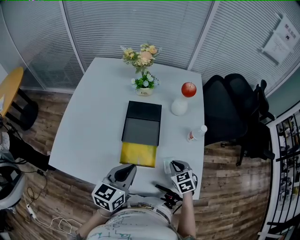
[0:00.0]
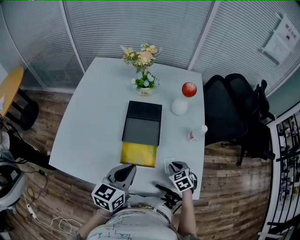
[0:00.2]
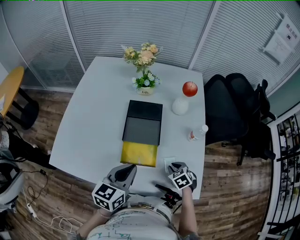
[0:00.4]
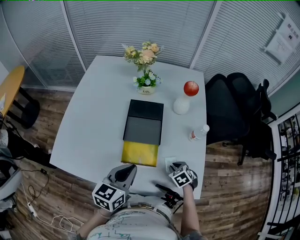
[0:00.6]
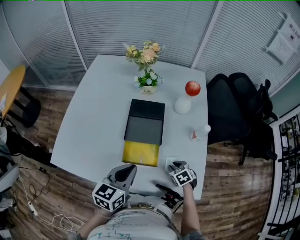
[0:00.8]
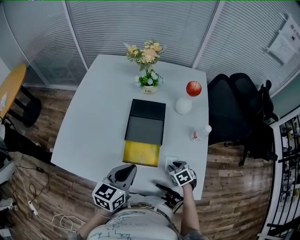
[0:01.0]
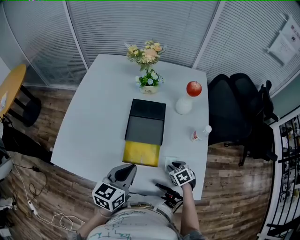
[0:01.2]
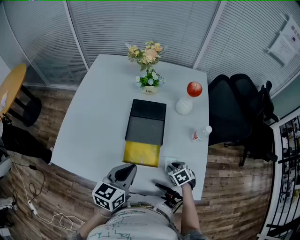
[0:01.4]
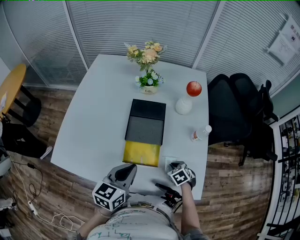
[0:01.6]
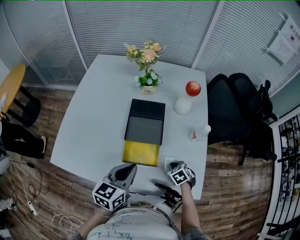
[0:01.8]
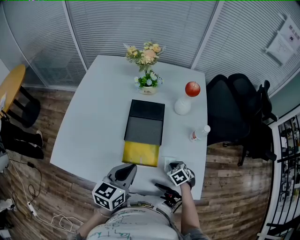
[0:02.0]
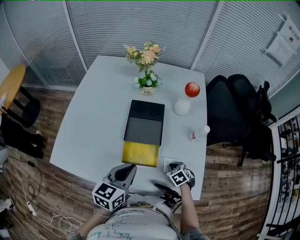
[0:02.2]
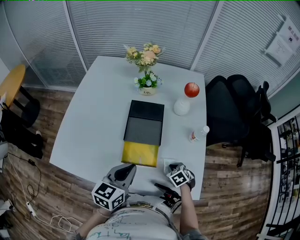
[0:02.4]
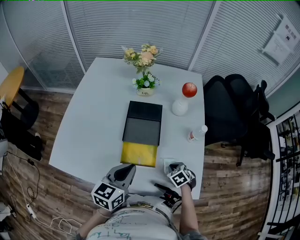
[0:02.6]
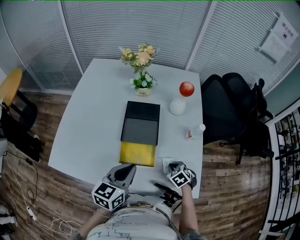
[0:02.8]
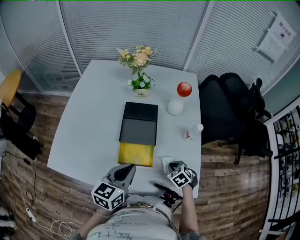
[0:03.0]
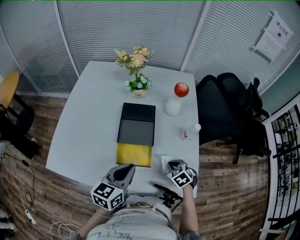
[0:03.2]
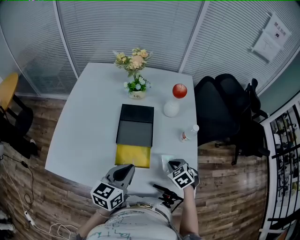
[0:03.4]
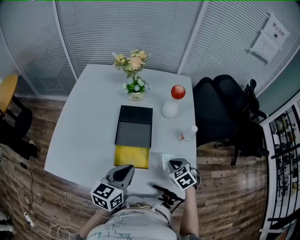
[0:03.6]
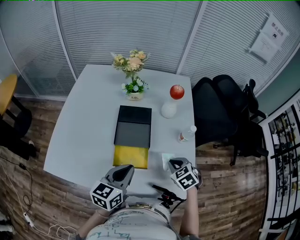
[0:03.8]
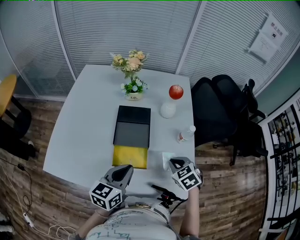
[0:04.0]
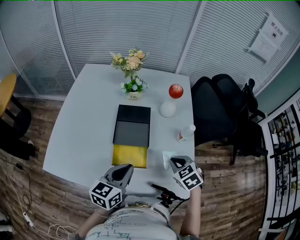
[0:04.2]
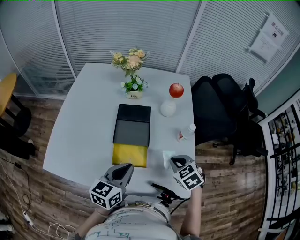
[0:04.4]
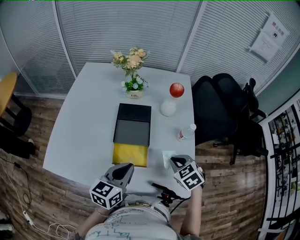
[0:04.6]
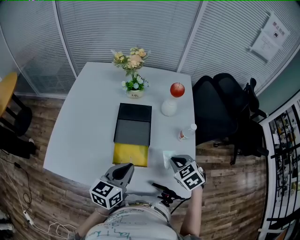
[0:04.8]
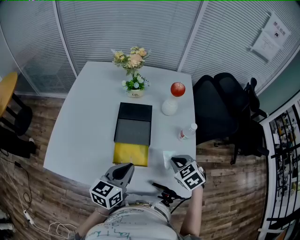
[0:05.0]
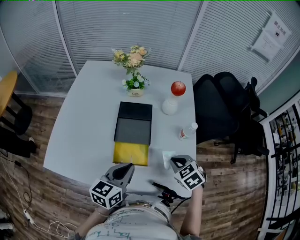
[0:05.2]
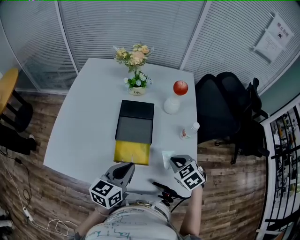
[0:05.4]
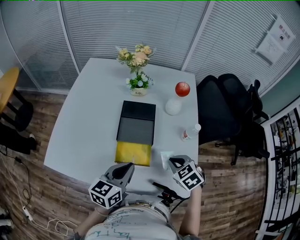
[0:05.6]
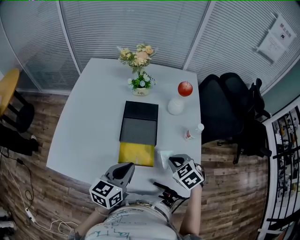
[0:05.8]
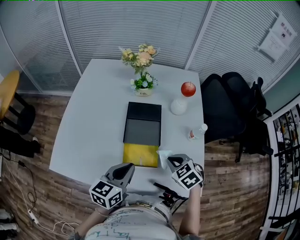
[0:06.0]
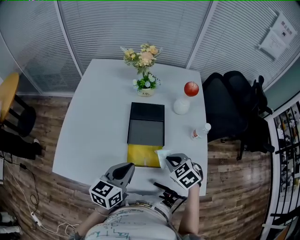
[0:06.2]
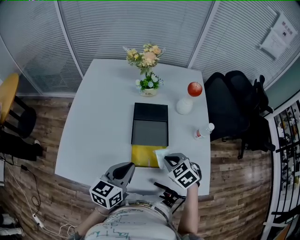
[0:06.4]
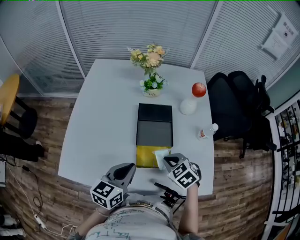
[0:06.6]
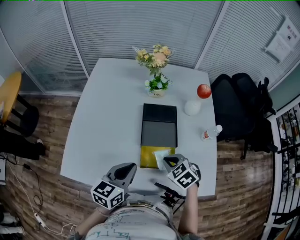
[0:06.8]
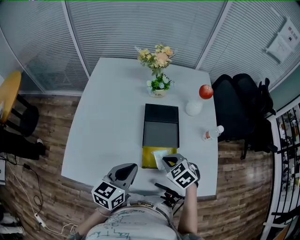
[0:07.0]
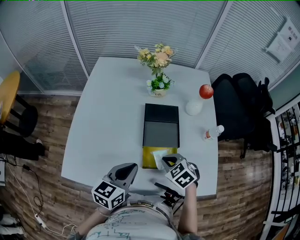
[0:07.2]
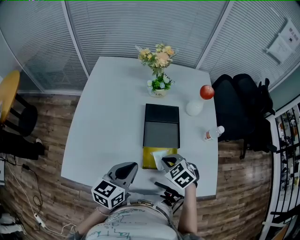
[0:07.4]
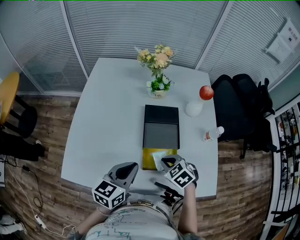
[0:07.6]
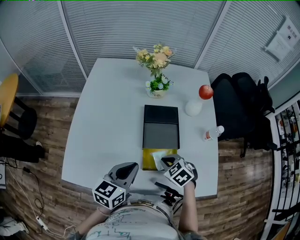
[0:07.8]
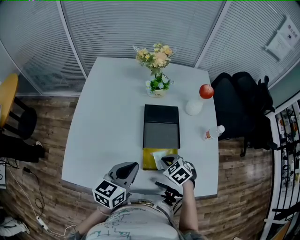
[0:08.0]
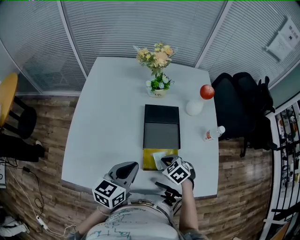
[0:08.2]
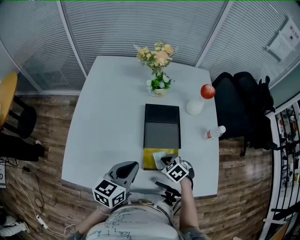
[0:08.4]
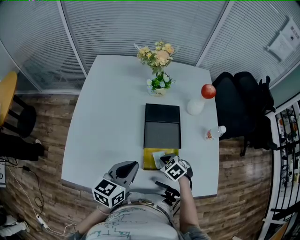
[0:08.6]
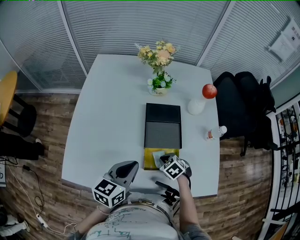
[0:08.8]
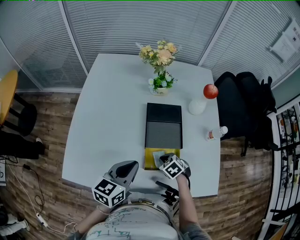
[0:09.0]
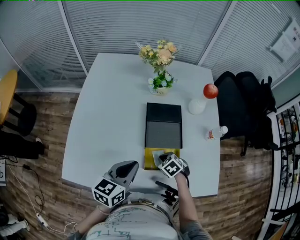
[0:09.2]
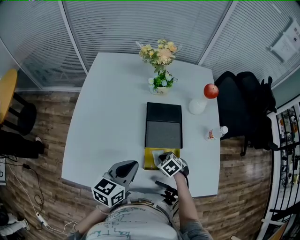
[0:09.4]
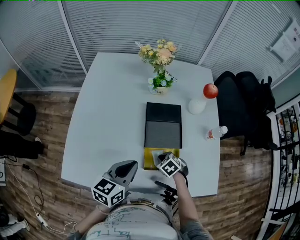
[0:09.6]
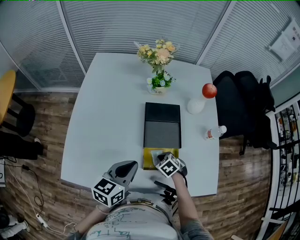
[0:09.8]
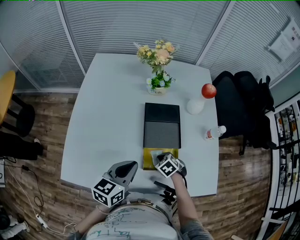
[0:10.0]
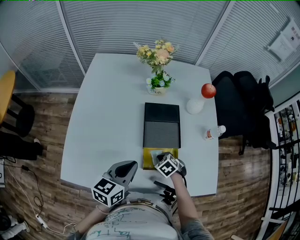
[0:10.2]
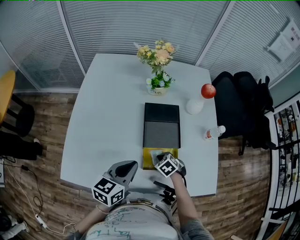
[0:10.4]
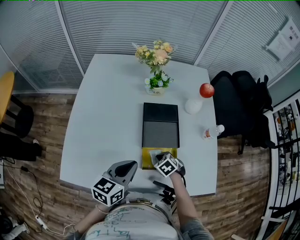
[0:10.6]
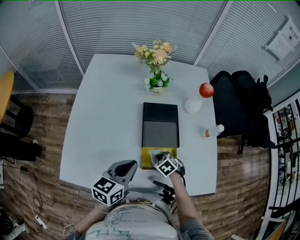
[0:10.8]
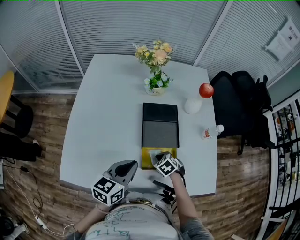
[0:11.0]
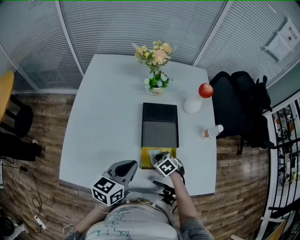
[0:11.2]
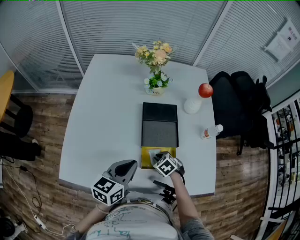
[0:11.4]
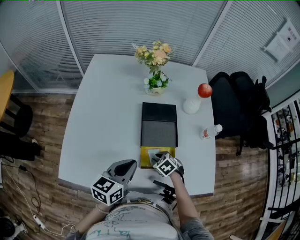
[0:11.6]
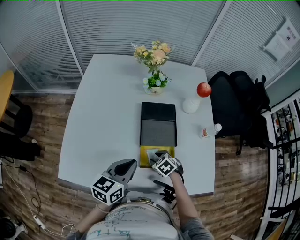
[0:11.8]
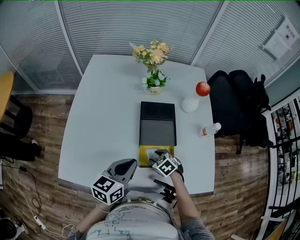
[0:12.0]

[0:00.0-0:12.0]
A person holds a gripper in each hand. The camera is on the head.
0:00.0 to 0:01.6: The right gripper heads downward, covering approximately 10 cm.
0:01.6 to 0:03.0: There are only small adjustments of the grippers.
0:03.0 to 0:04.4: The right gripper shifts roughly 15 cm upward.
0:04.4 to 0:06.0: Both grippers travel together to the left, roughly 5 cm.
0:06.0 to 0:07.6: The grippers both shift to the left by roughly 10 cm.
0:07.6 to 0:09.0: The right gripper heads downward, covering about 10 cm.
0:09.0 to 0:10.4: The grippers make only small movements.
0:10.4 to 0:12.0: The right gripper opens up.

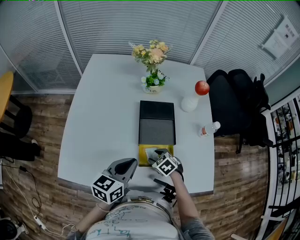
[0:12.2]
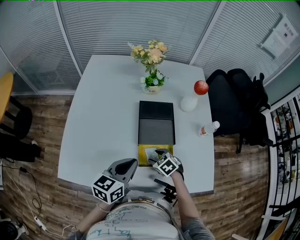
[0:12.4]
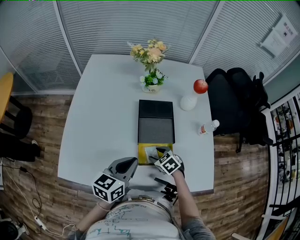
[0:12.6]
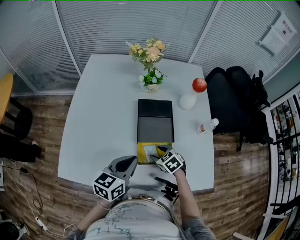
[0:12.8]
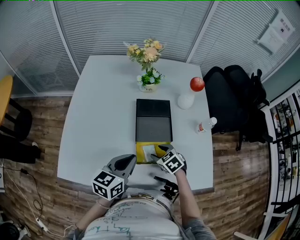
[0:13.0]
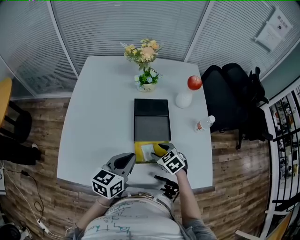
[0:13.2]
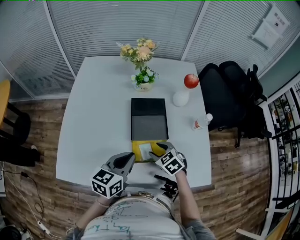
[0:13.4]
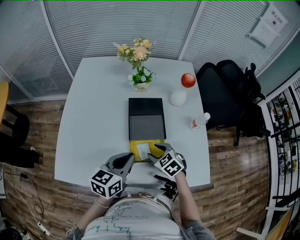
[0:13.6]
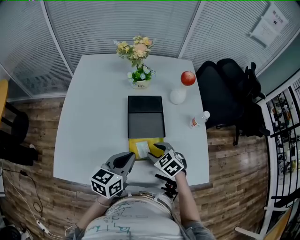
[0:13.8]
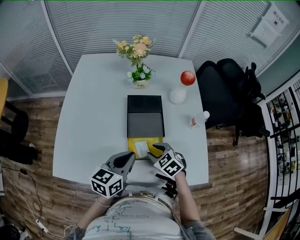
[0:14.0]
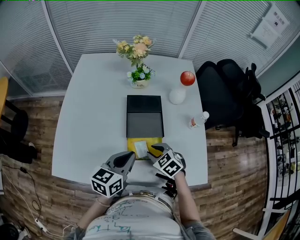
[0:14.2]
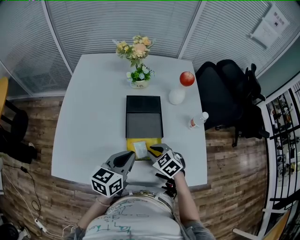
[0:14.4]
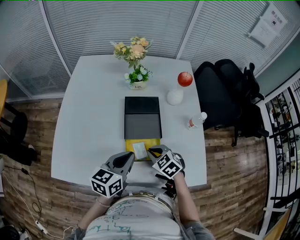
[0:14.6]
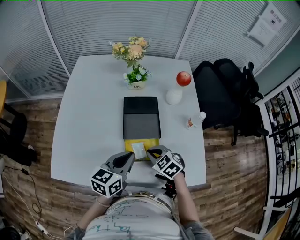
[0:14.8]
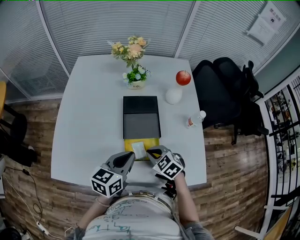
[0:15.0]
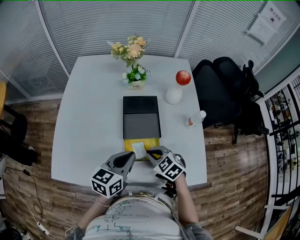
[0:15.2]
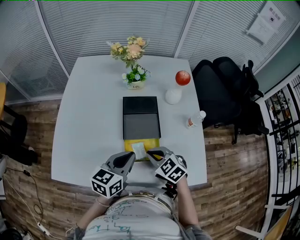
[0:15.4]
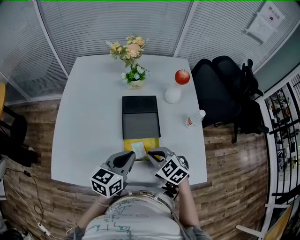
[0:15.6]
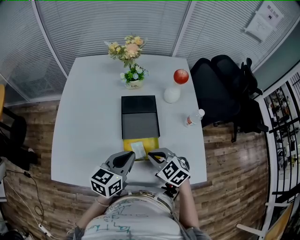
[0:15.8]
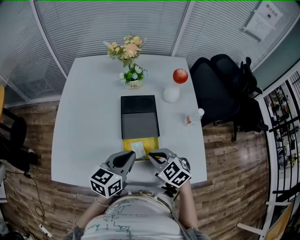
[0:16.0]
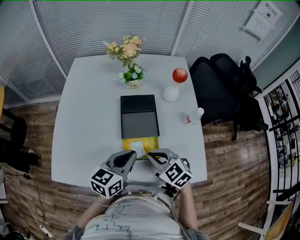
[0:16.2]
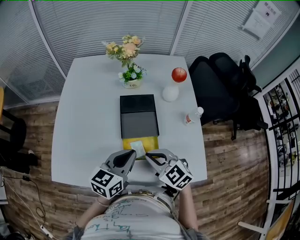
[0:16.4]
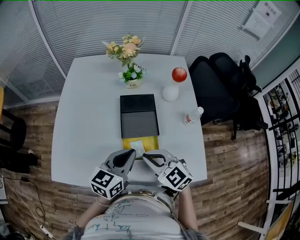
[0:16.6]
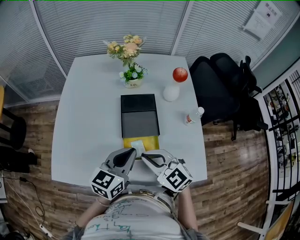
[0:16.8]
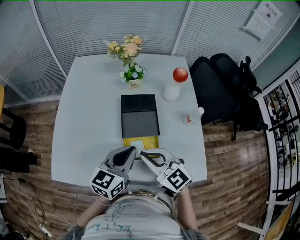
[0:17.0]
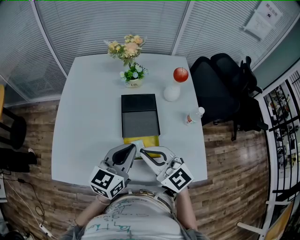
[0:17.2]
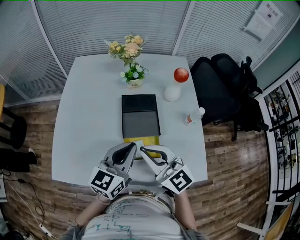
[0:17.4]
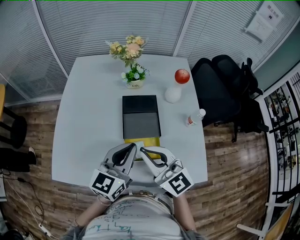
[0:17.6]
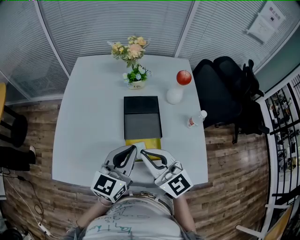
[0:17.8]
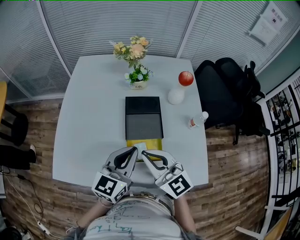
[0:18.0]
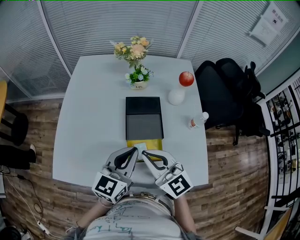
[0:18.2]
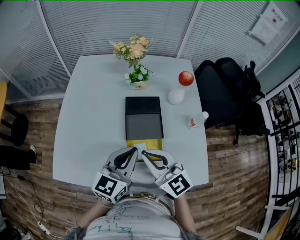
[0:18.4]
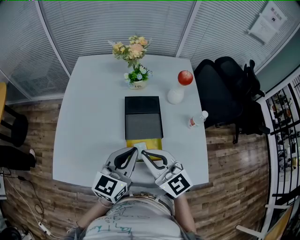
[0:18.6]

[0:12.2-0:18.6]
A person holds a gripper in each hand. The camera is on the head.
0:12.2 to 0:13.8: The right gripper shifts approximately 10 cm upward.
0:13.8 to 0:15.4: The right gripper closes its fingers.
0:15.4 to 0:17.0: The right gripper travels upward by some 10 cm, and changes its angle by some 30 degrees.
0:17.0 to 0:18.6: The grippers stay close to where they were, moving slightly.

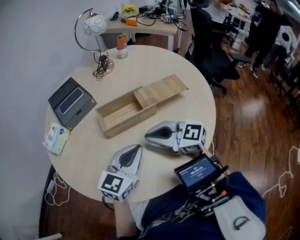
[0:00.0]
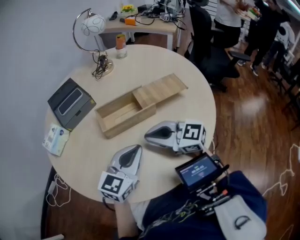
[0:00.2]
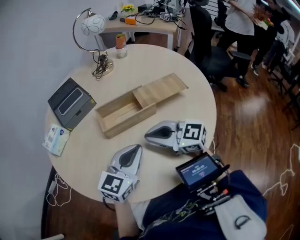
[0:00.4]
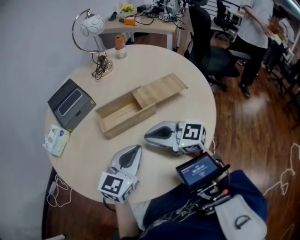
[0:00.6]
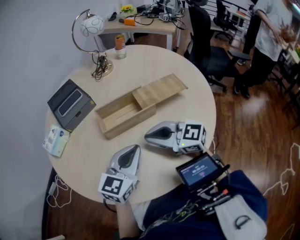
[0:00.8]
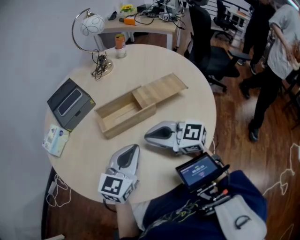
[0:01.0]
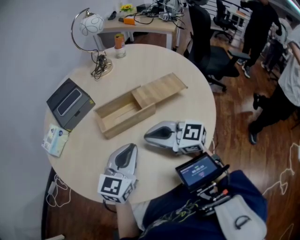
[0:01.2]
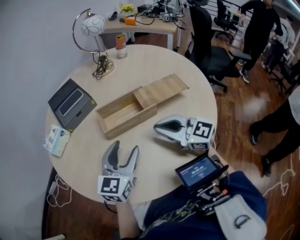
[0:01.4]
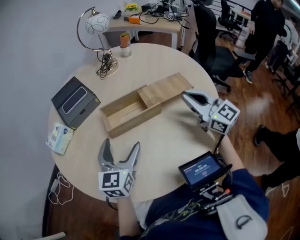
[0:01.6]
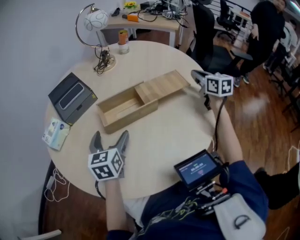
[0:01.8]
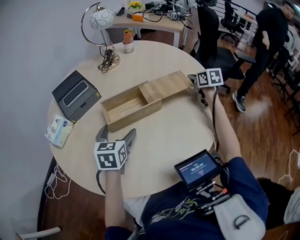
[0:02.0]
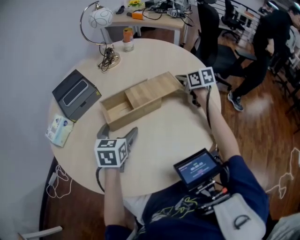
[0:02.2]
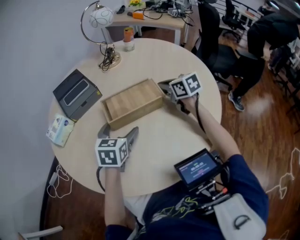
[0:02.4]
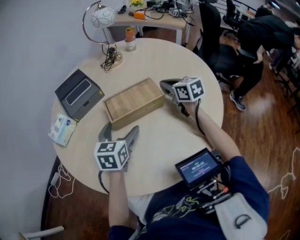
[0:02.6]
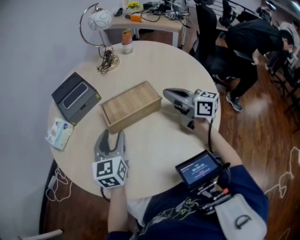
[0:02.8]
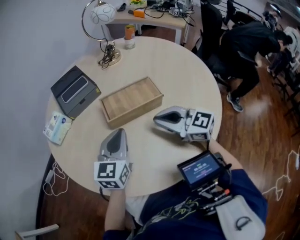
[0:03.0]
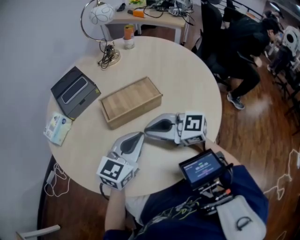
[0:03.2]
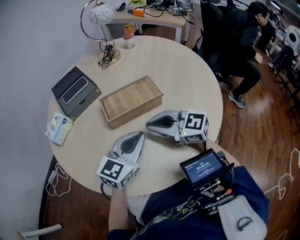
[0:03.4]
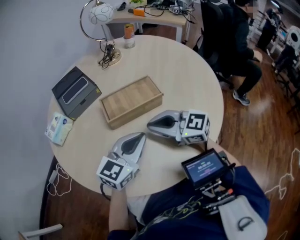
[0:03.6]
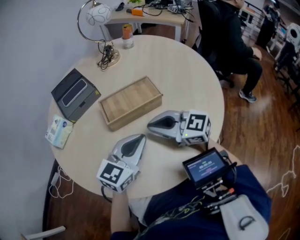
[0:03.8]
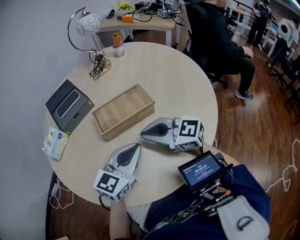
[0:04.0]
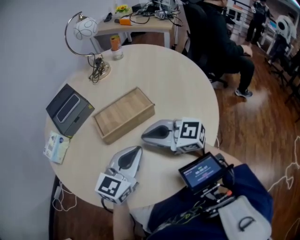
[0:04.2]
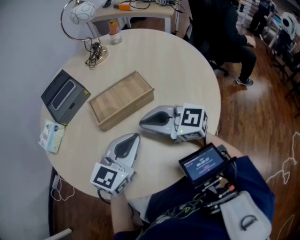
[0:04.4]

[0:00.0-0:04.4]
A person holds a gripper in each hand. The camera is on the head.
0:00.0 to 0:01.4: The left gripper opens its fingers.
0:01.4 to 0:03.0: The left gripper closes, while the right gripper moves approximately 20 cm forward and comes back.
0:03.0 to 0:04.4: The left gripper goes approximately 5 cm to the right, and rotates some 20 degrees.

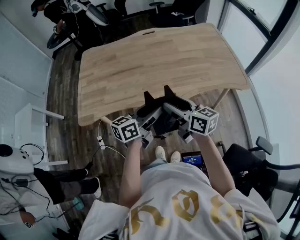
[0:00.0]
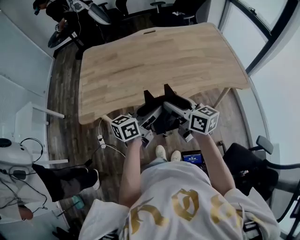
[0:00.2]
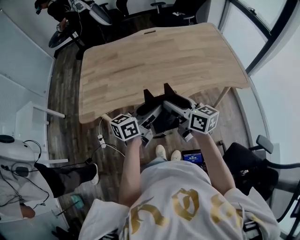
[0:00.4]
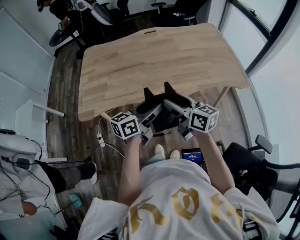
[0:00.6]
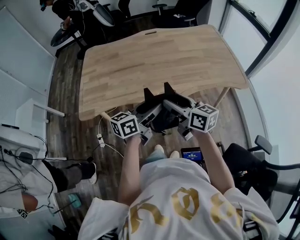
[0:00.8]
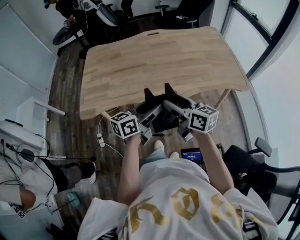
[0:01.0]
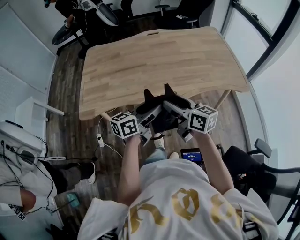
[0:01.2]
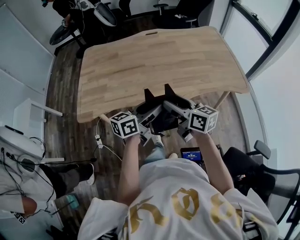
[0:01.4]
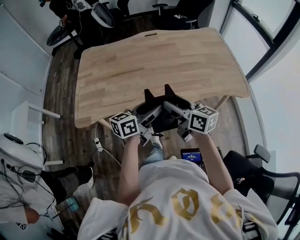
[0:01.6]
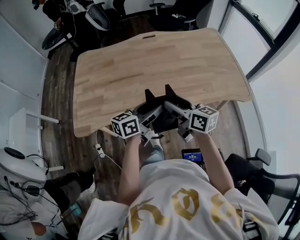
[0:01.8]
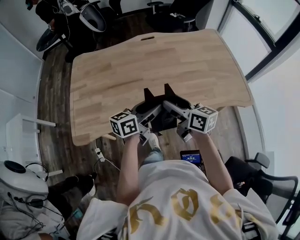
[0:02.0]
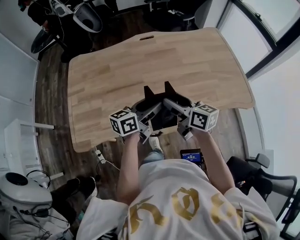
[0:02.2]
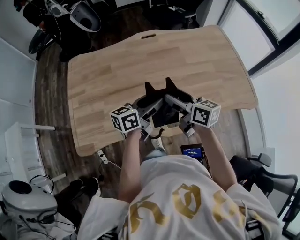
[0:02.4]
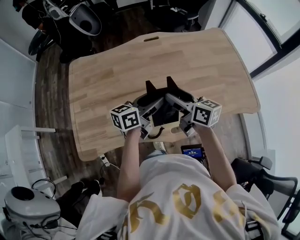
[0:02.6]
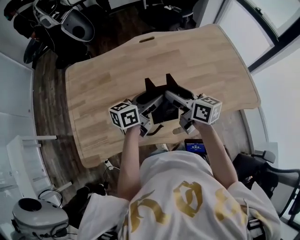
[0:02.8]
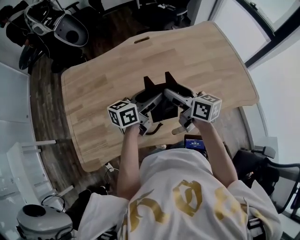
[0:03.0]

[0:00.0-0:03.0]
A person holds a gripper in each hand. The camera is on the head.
0:00.0 to 0:01.6: The grippers move only a little.
0:01.6 to 0:03.0: Both grippers move forward, approximately 25 cm.
